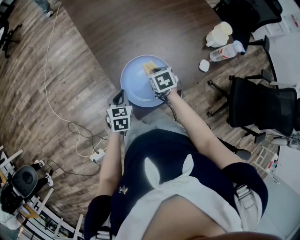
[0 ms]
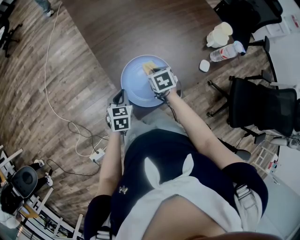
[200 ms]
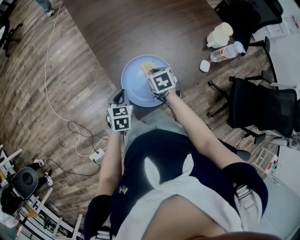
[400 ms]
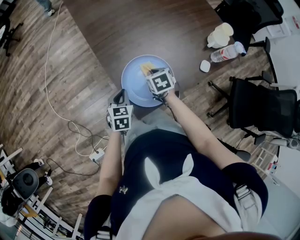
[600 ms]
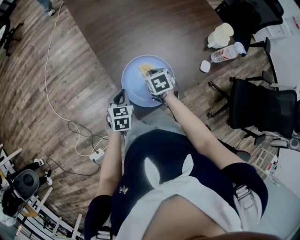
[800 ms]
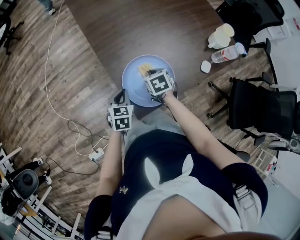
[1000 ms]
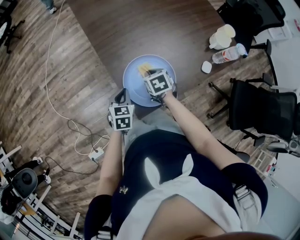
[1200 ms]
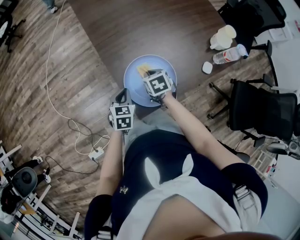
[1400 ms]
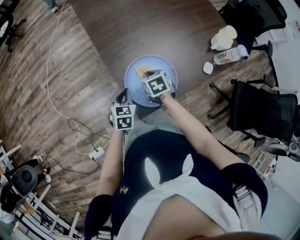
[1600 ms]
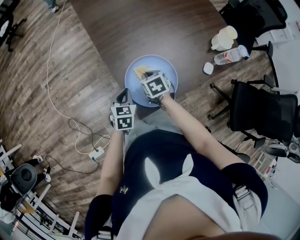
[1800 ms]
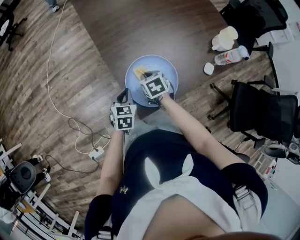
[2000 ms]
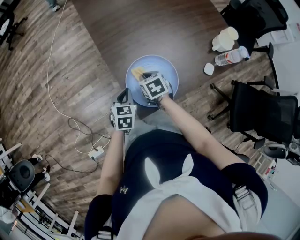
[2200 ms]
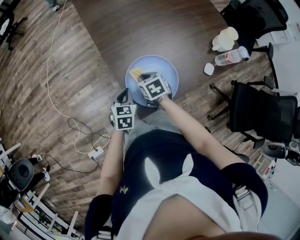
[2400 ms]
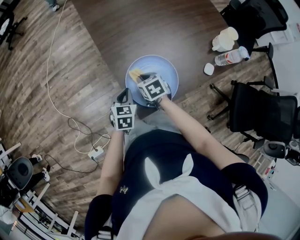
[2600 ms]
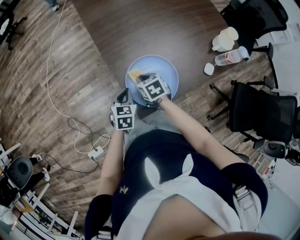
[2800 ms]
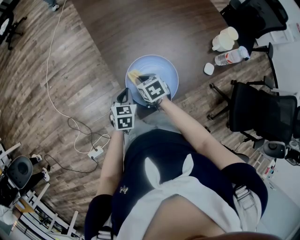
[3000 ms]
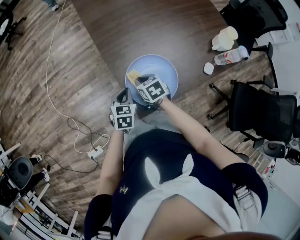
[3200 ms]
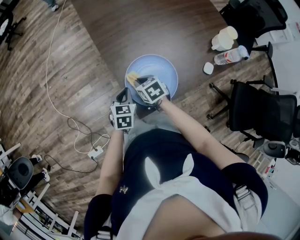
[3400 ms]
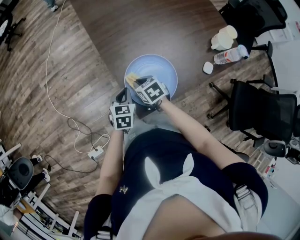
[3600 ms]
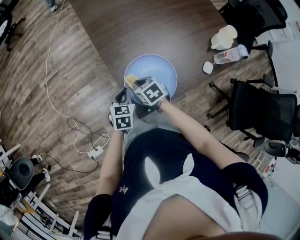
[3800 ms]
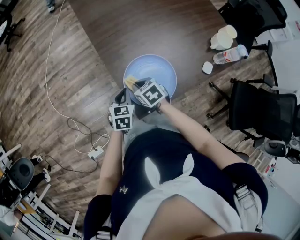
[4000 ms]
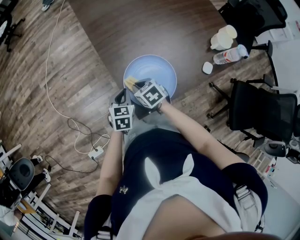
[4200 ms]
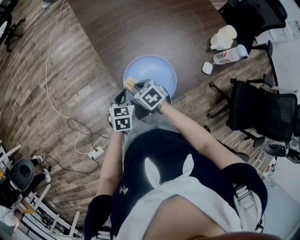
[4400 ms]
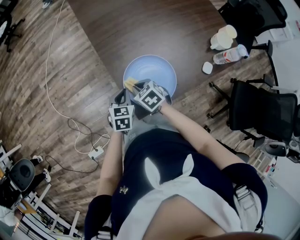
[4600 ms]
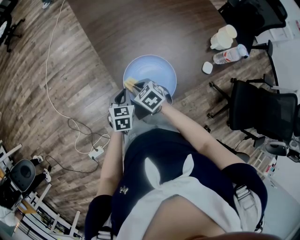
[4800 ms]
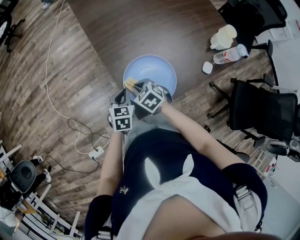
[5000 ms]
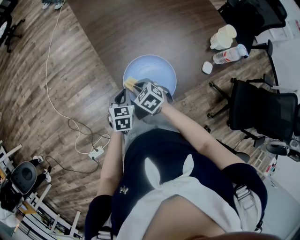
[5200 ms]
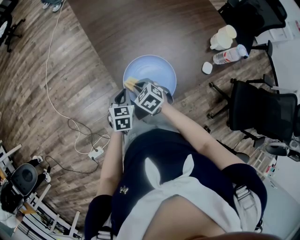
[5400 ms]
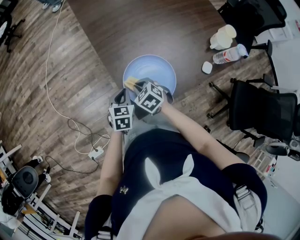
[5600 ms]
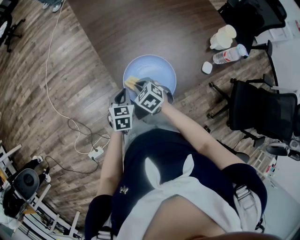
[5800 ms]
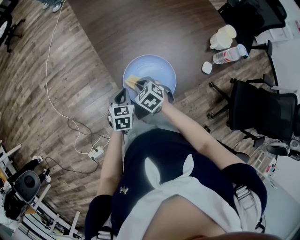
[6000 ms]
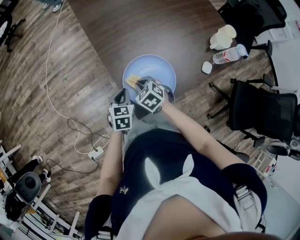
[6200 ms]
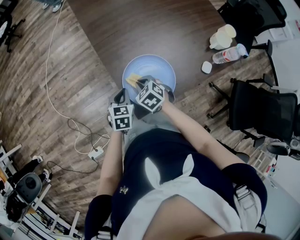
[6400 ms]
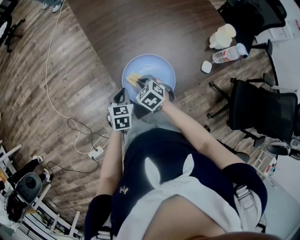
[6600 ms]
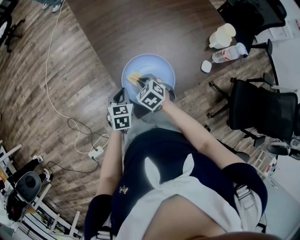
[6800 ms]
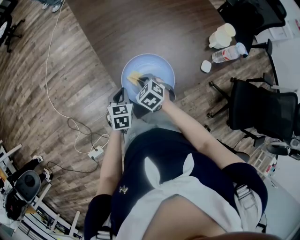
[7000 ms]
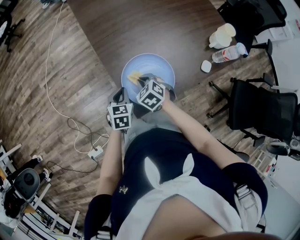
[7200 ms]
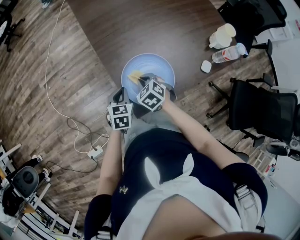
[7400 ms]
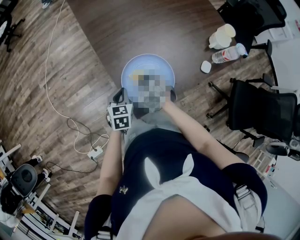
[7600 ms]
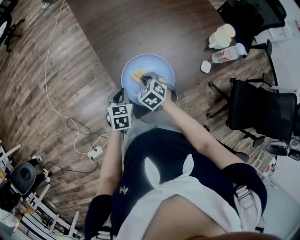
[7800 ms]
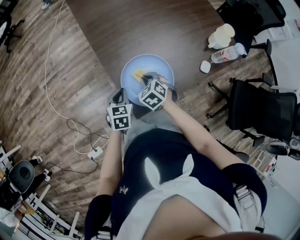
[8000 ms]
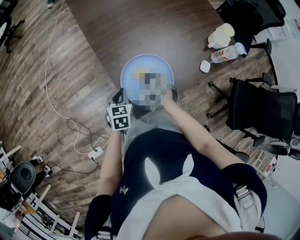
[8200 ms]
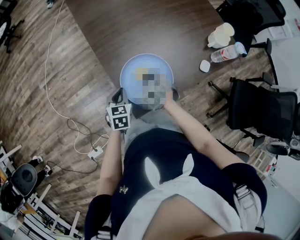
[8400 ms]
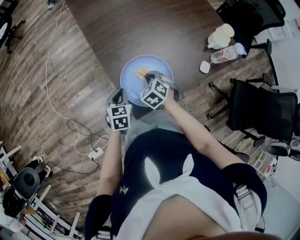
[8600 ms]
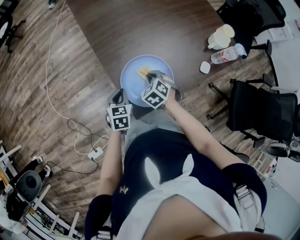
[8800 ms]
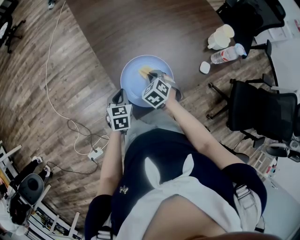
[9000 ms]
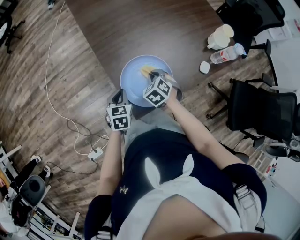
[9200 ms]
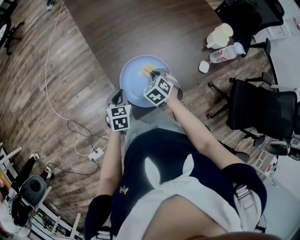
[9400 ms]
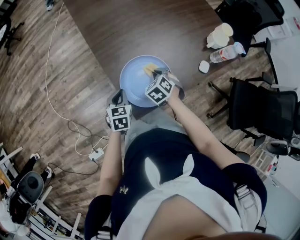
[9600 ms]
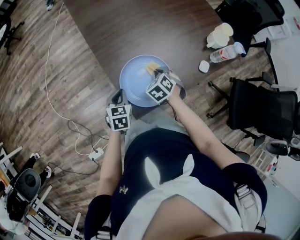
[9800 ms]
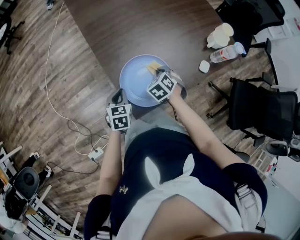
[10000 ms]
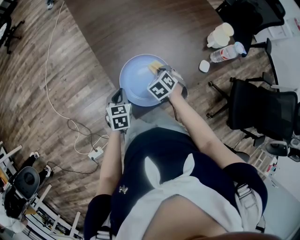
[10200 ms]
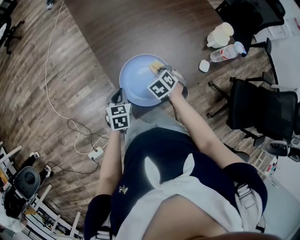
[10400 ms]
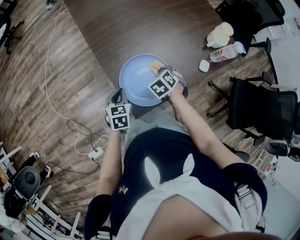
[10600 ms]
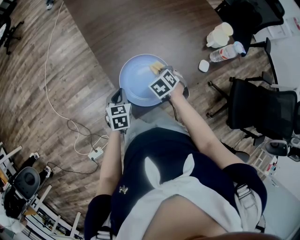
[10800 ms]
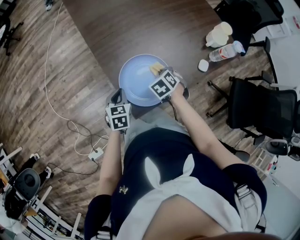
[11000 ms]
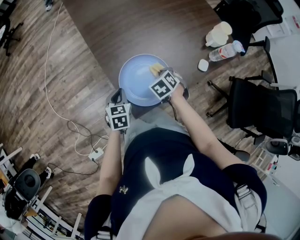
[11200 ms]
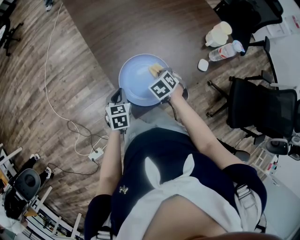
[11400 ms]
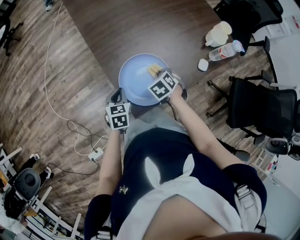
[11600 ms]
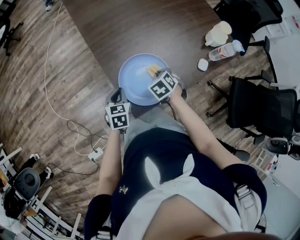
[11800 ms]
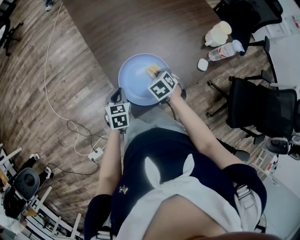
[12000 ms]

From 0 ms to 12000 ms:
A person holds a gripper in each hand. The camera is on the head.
From 0 ms to 1600 ms: The right gripper is displaced to the left by some 5 cm.
From 1600 ms to 3000 ms: The grippers move only a little.
From 3000 ms to 4400 ms: There are only small adjustments of the grippers.
From 4400 ms to 6000 ms: The grippers move only a little.
From 6000 ms to 7600 ms: The grippers move only a little.
From 7600 ms to 9000 ms: The right gripper changes place by roughly 5 cm.
From 9000 ms to 10400 ms: The right gripper heads to the right, covering about 5 cm.
From 10400 ms to 12000 ms: The grippers move only a little.

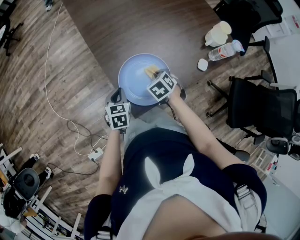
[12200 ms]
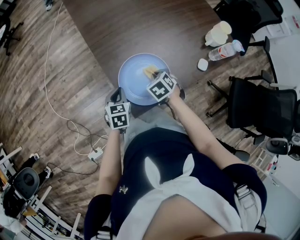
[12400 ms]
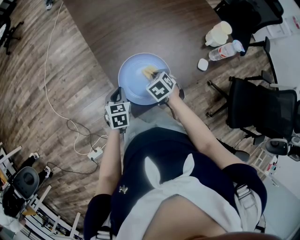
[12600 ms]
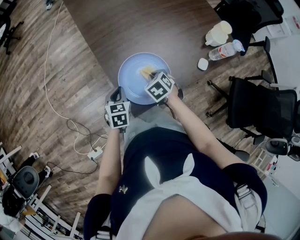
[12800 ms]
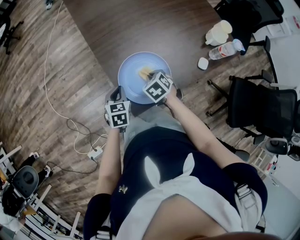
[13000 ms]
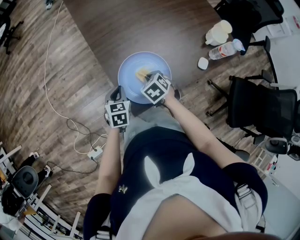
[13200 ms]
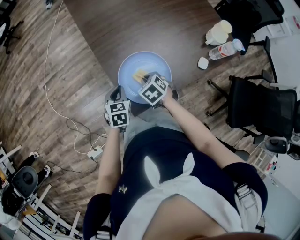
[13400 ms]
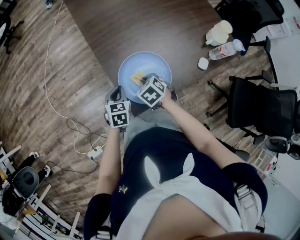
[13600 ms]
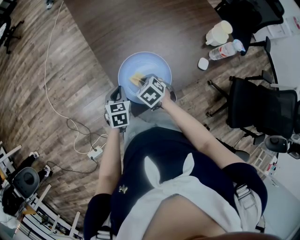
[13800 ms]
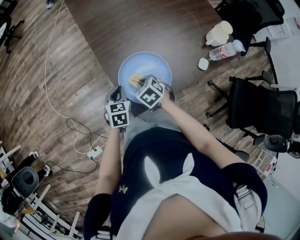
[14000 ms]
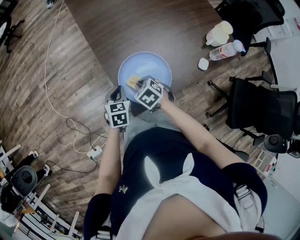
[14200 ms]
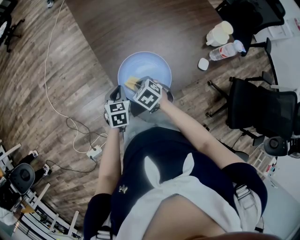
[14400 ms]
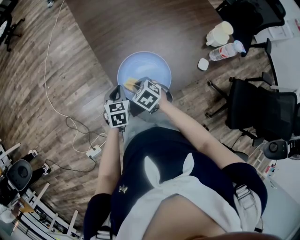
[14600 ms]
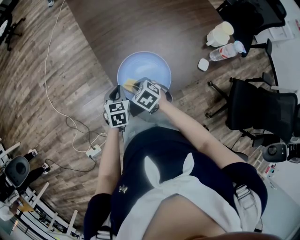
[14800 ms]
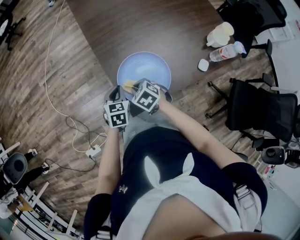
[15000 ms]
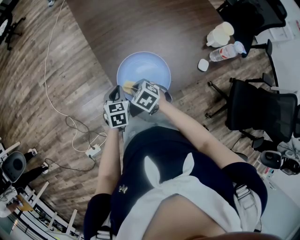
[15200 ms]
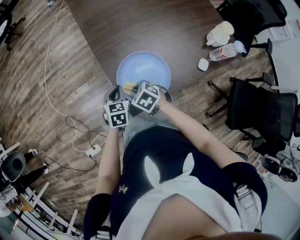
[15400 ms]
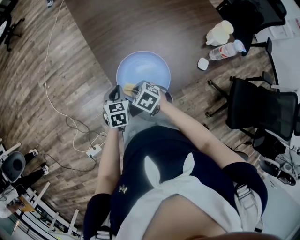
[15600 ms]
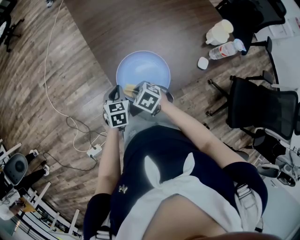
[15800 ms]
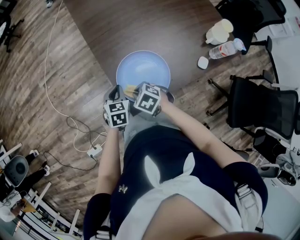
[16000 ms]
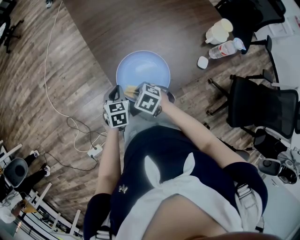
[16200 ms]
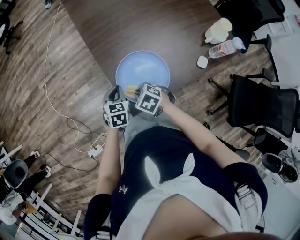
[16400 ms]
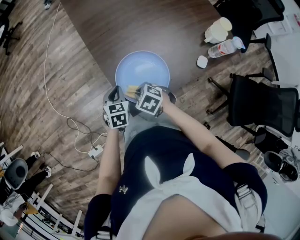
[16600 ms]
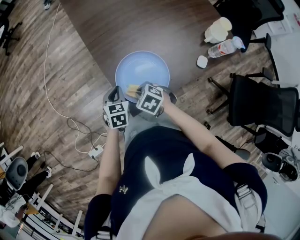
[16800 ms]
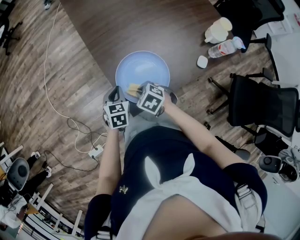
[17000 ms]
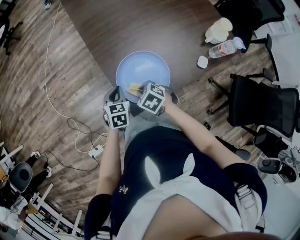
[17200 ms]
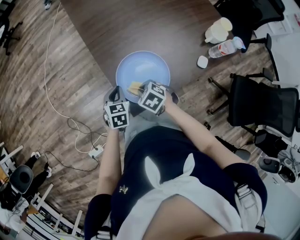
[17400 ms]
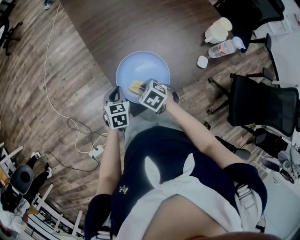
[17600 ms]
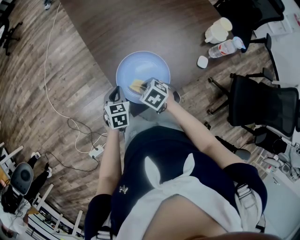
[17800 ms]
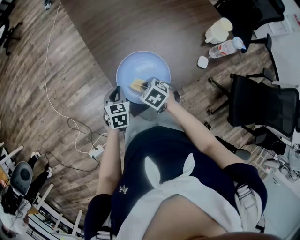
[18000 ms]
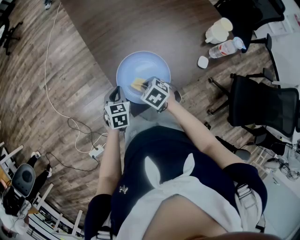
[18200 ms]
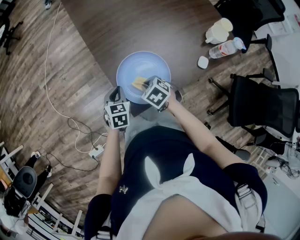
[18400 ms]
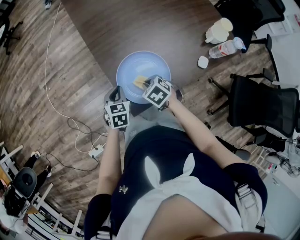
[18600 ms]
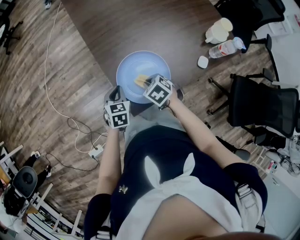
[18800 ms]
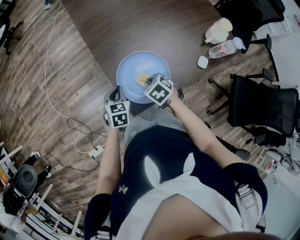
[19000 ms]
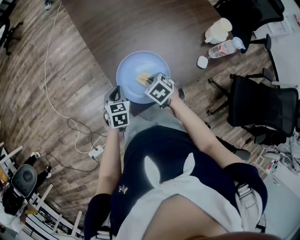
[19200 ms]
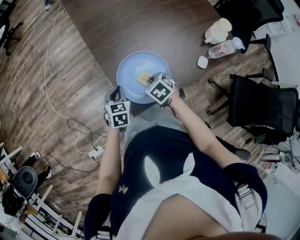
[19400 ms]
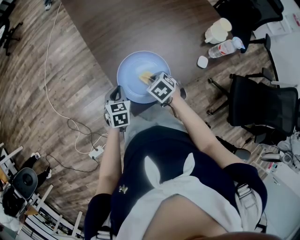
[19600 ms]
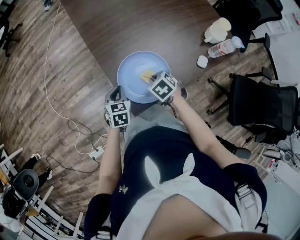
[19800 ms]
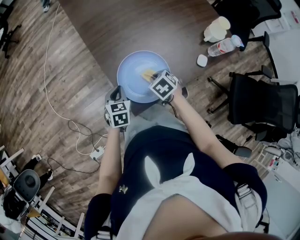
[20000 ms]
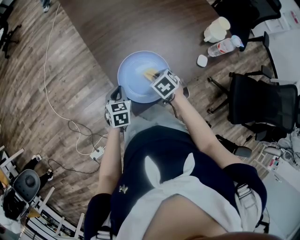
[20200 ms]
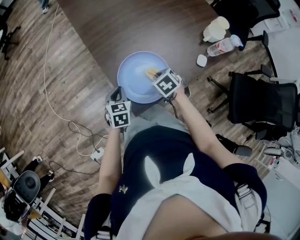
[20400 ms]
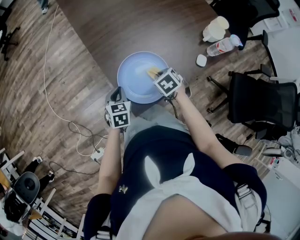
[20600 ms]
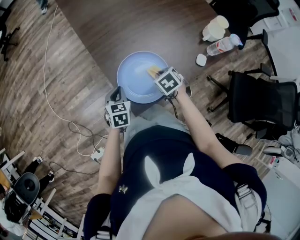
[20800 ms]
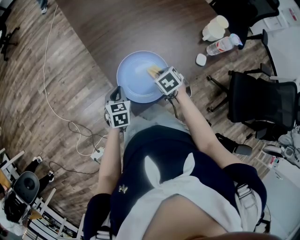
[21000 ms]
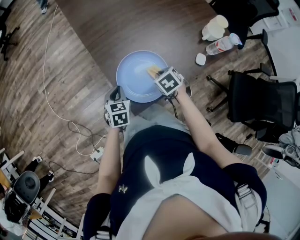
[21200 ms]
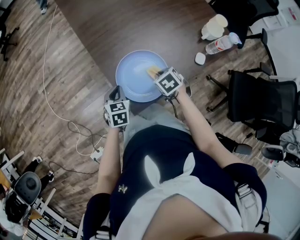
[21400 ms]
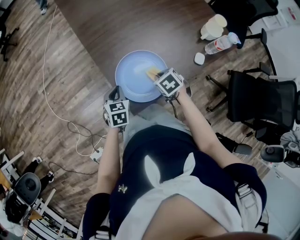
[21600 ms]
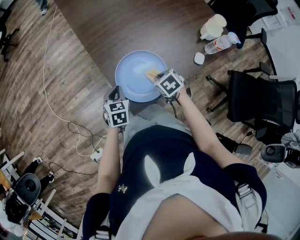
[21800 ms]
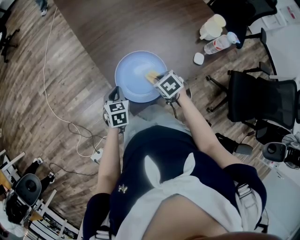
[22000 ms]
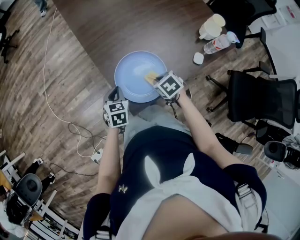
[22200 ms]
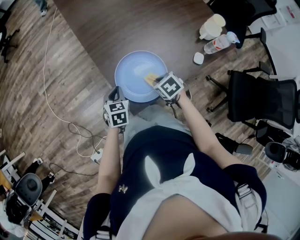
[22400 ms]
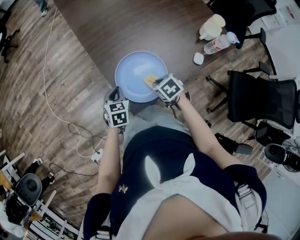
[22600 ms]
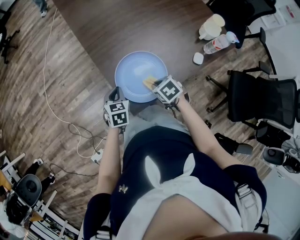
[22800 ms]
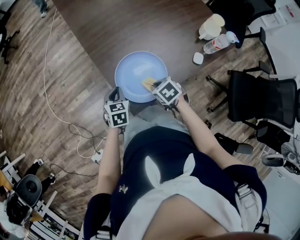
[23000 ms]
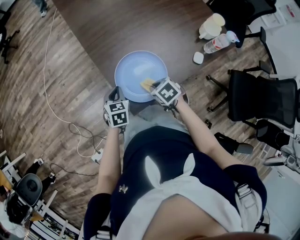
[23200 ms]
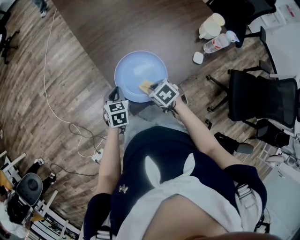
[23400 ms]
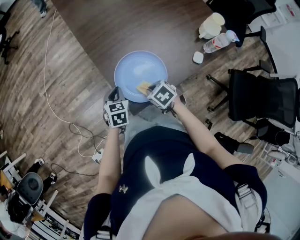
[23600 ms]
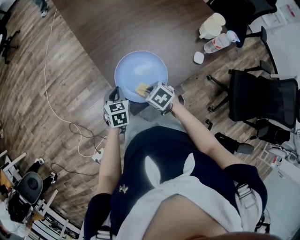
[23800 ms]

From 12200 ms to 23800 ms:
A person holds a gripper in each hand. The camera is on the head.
From 12200 ms to 13600 ms: The right gripper moves to the left, some 5 cm.
From 13600 ms to 15000 ms: The right gripper shifts by roughly 5 cm.
From 15000 ms to 18000 ms: The grippers make only small movements.
From 18000 ms to 19400 ms: There are only small adjustments of the grippers.
From 19400 ms to 21000 ms: The right gripper heads to the right, covering about 5 cm.
From 21000 ms to 22400 ms: The grippers stay close to where they were, moving slightly.
From 22400 ms to 23800 ms: The right gripper goes some 5 cm to the left.

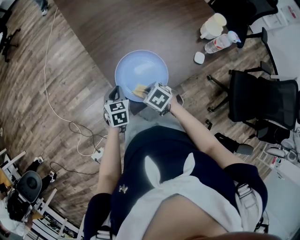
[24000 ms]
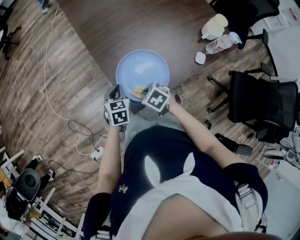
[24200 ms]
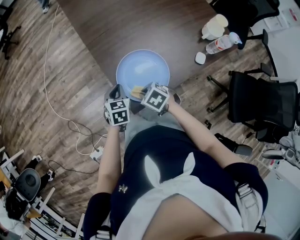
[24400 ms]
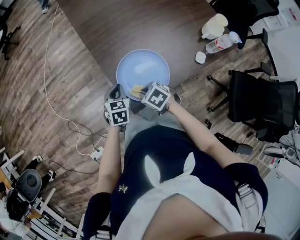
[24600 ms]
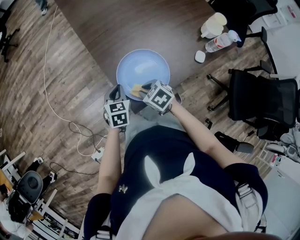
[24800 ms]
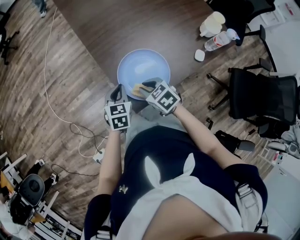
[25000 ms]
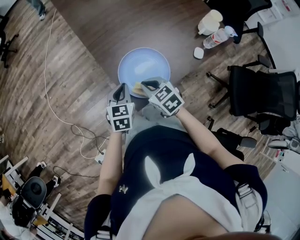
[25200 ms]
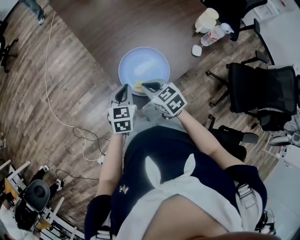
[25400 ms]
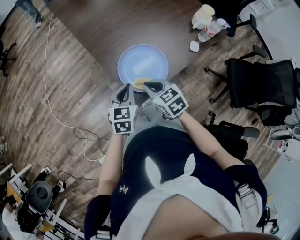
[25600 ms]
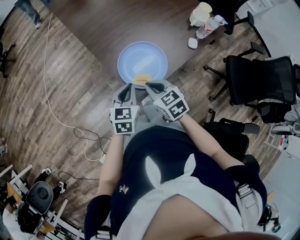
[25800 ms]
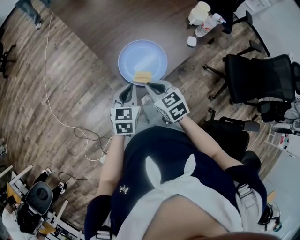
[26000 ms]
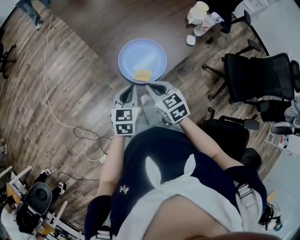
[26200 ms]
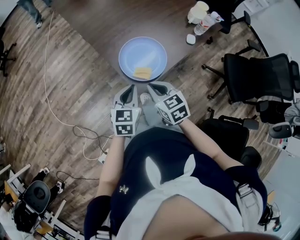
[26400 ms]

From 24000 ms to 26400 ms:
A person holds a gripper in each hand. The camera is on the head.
From 24000 ms to 25200 ms: The two grippers go approximately 5 cm upward. The right gripper changes its angle by about 20 degrees.
From 25200 ms to 26400 ms: Both grippers move backward and upward, some 15 cm.
